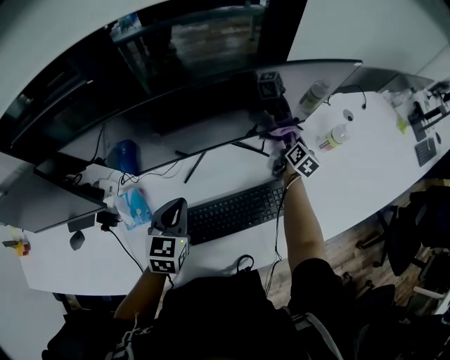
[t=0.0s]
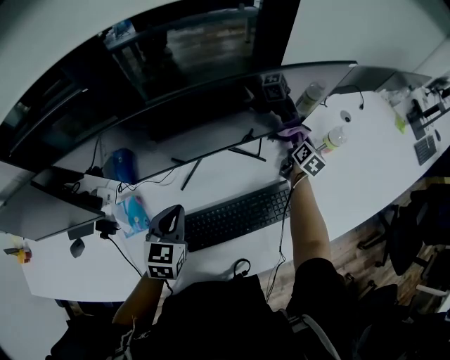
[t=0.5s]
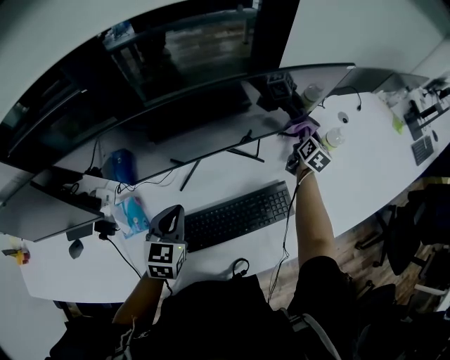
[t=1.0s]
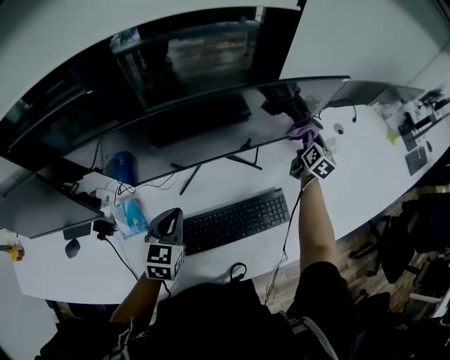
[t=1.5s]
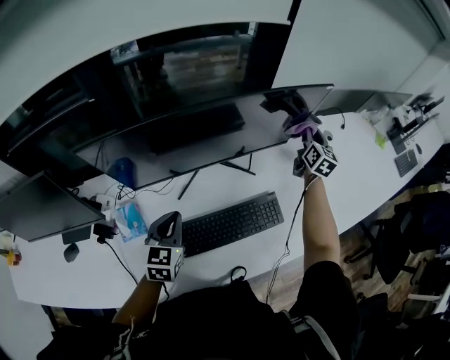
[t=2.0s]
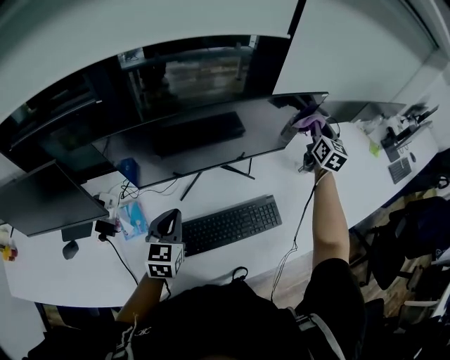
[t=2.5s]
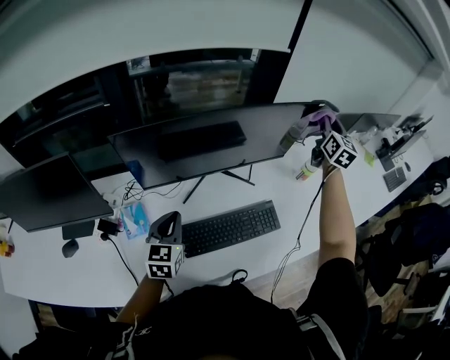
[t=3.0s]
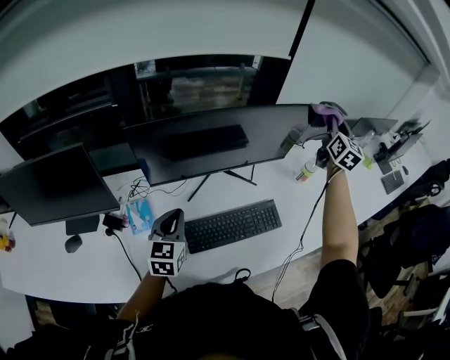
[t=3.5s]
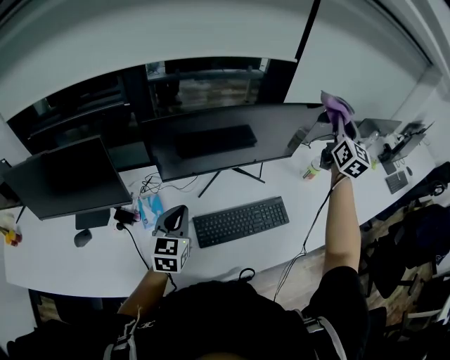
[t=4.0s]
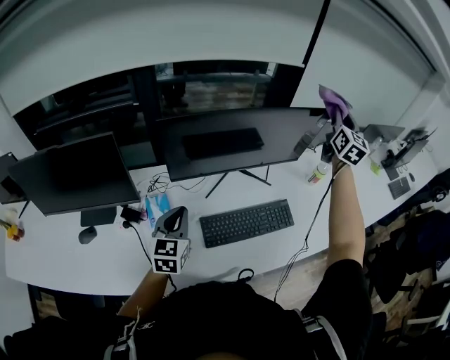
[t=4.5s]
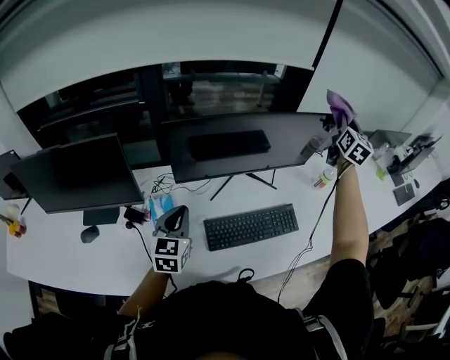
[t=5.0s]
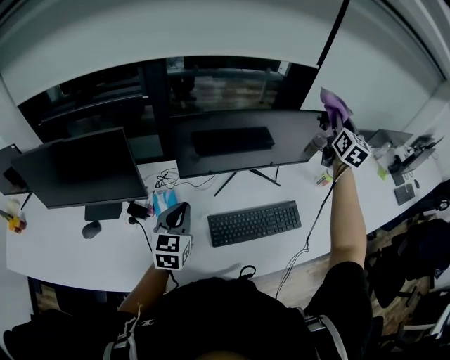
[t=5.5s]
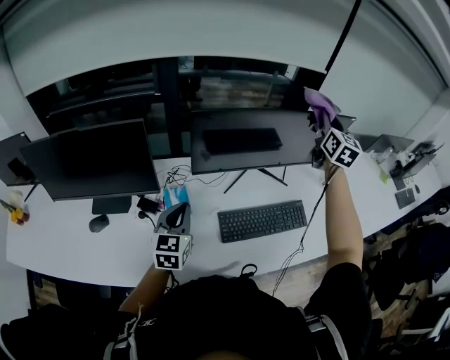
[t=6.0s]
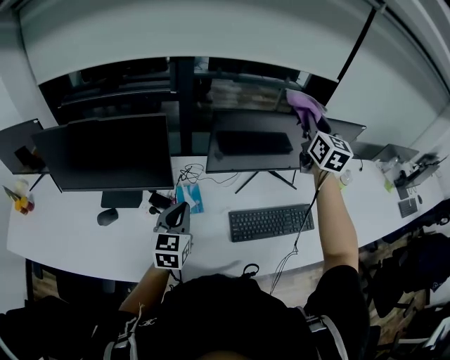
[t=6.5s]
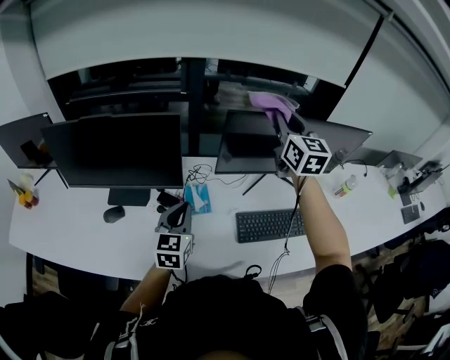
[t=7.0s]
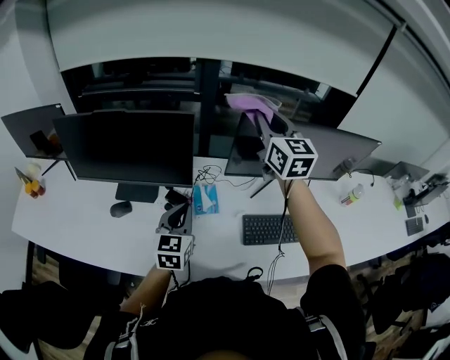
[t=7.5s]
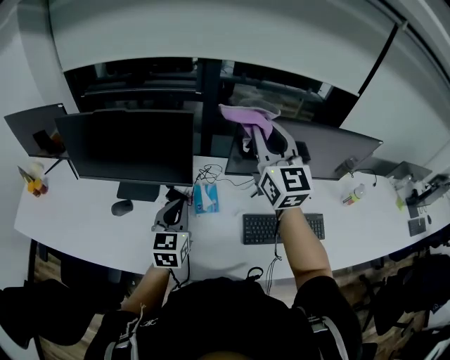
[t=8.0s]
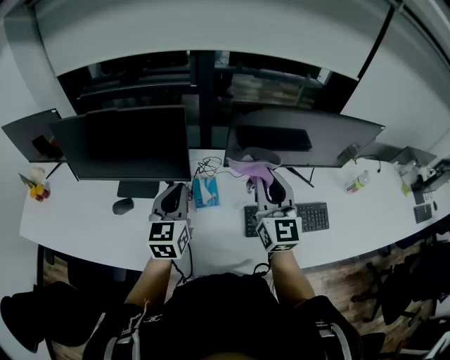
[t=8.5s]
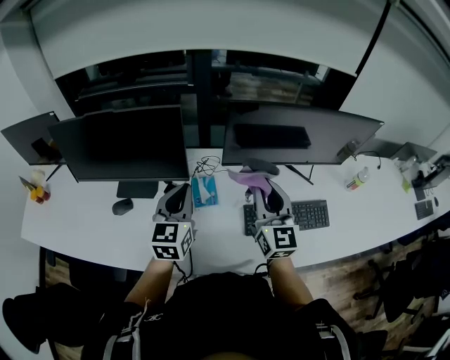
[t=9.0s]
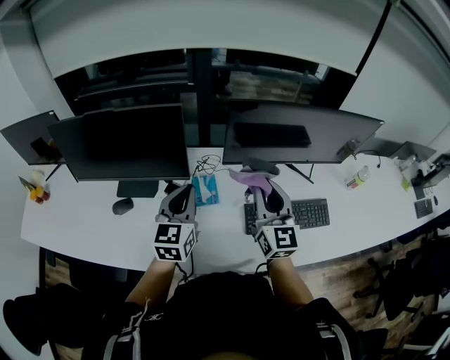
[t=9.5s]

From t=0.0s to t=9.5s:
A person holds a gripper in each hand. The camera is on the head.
From t=0.0s to t=2.0s: The right gripper is displaced upward by roughly 20 cm, and rotates roughly 20 degrees.
From t=2.0s to t=4.0s: The right gripper is displaced upward and backward by about 30 cm, and changes its angle by roughly 20 degrees, while the left gripper moves backward, upward and to the left, approximately 15 cm.
From t=4.0s to t=5.5s: The two grippers go approximately 5 cm to the left.
From t=5.5s to t=7.5s: The left gripper ends up about 15 cm from where it was. Meanwhile the right gripper ends up some 50 cm from where it was, and swivels roughly 40 degrees.
From t=7.5s to t=9.5s: The left gripper shifts some 5 cm upward. The right gripper shifts approximately 20 cm backward and downward.

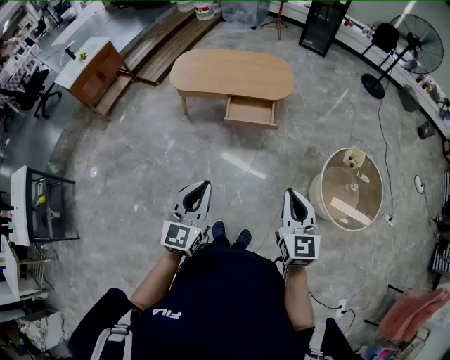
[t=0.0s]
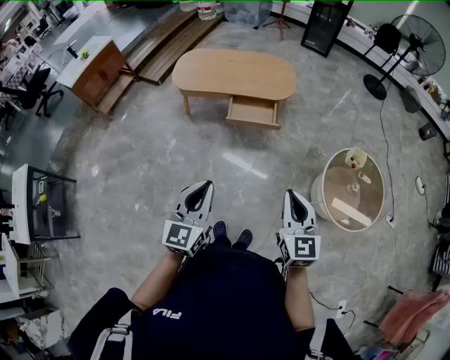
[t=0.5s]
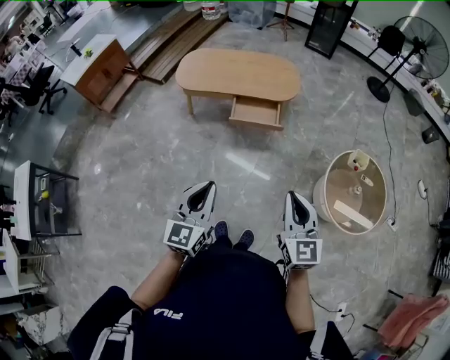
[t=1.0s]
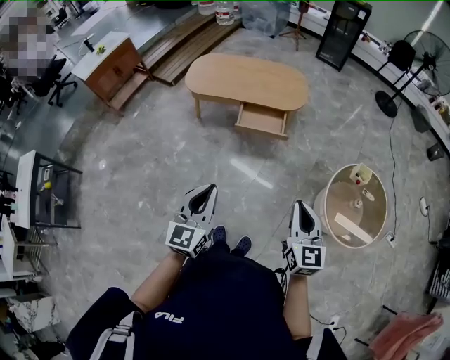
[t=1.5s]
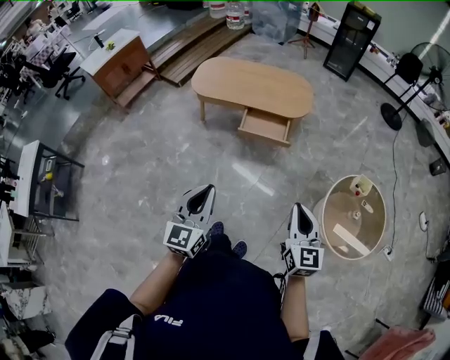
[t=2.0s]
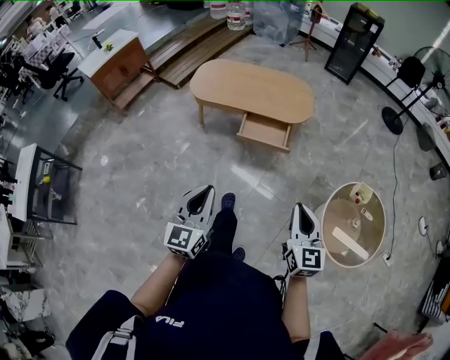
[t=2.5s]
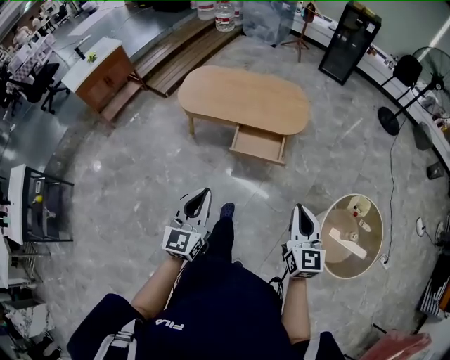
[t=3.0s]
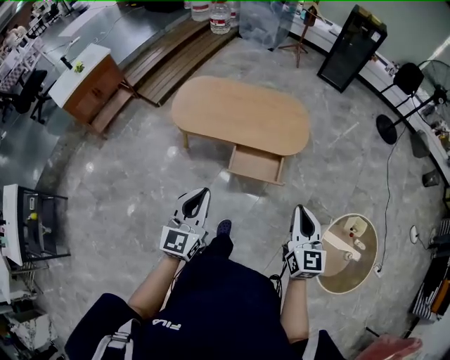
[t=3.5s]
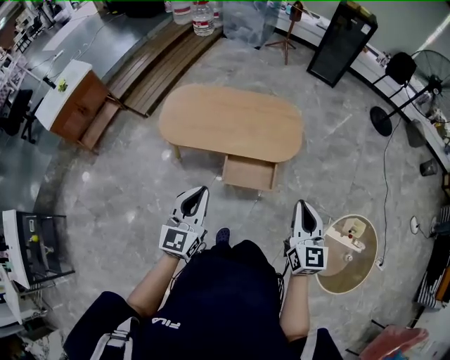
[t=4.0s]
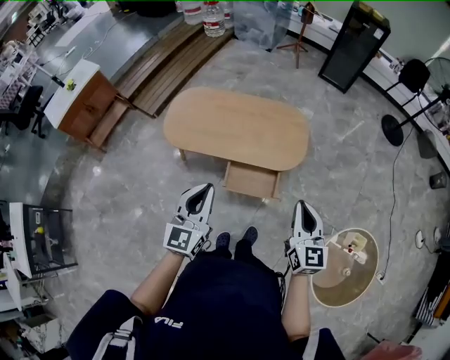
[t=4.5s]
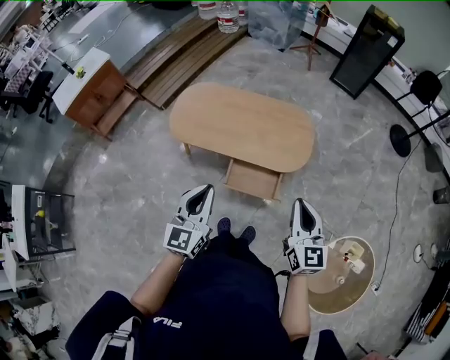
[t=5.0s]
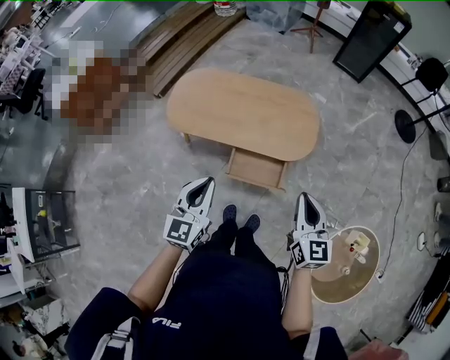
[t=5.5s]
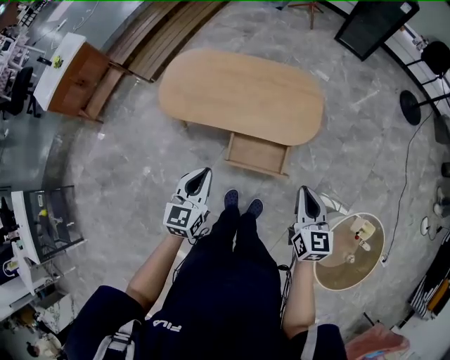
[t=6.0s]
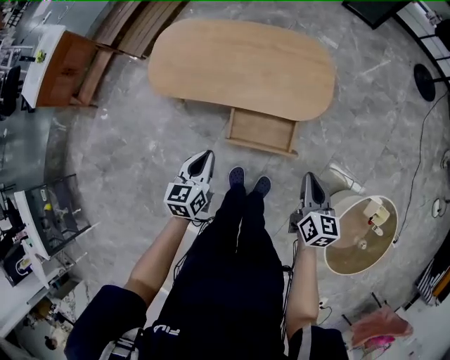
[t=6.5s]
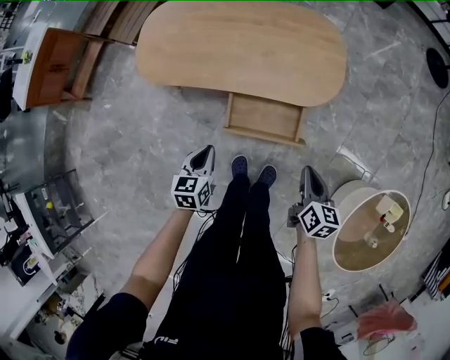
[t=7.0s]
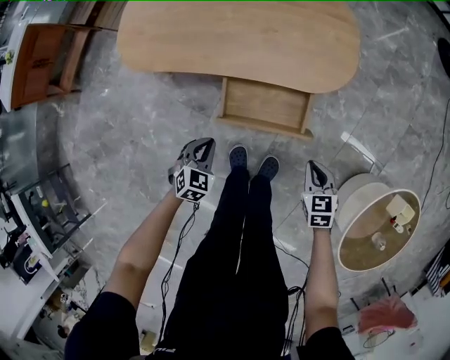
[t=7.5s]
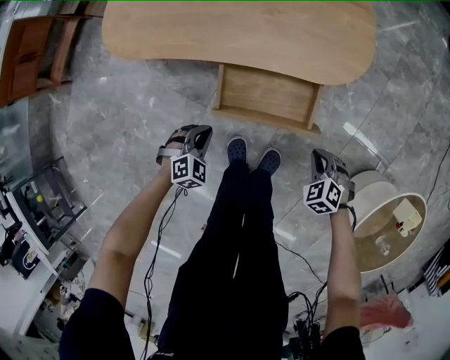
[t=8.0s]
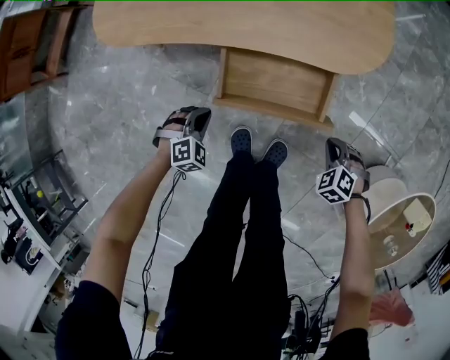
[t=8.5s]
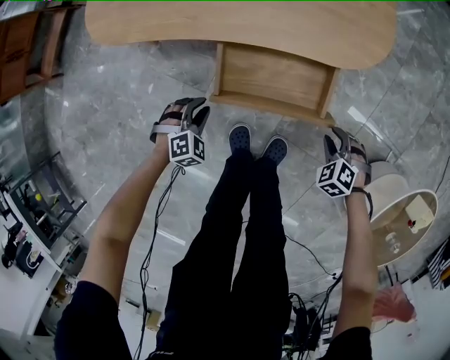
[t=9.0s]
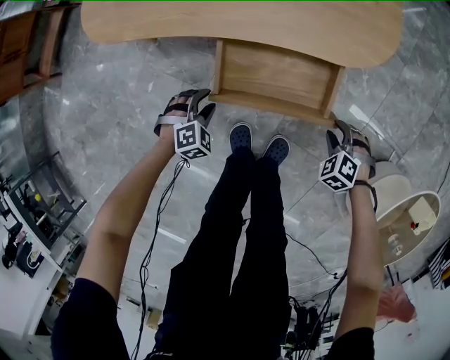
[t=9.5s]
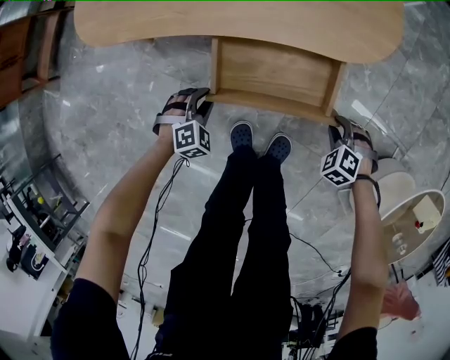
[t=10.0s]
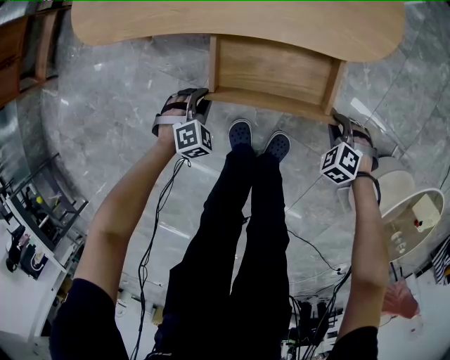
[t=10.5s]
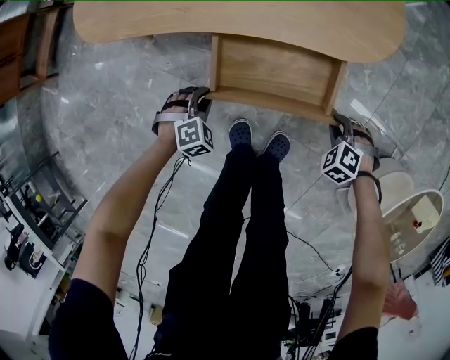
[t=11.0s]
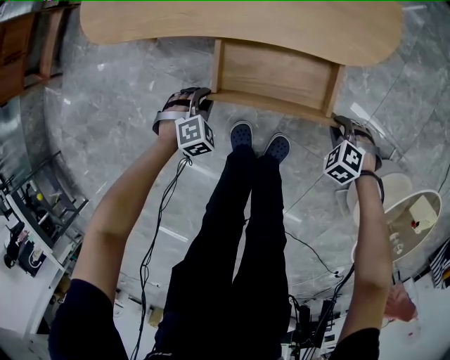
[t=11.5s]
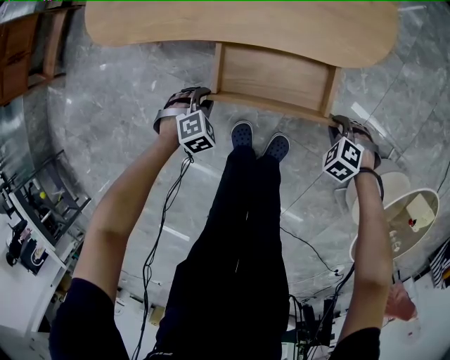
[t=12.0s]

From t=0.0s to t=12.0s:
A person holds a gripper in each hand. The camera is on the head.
From t=0.0s to t=2.0s: The right gripper changes place by roughly 5 cm.
From t=2.0s to t=4.0s: Both grippers are carried forward, roughly 50 cm.
From t=4.0s to t=6.0s: The grippers both shift downward and forward by roughly 20 cm.
From t=6.0s to t=8.0s: The two grippers go approximately 50 cm downward. The left gripper points its fingers roughly 40 degrees further downward; the right gripper angles its fingers downward, by roughly 50 degrees.
From t=8.0s to t=10.0s: The two grippers go approximately 10 cm downward. The left gripper opens up, while the right gripper opens its fingers.
From t=10.0s to t=12.0s: The grippers make only small movements.

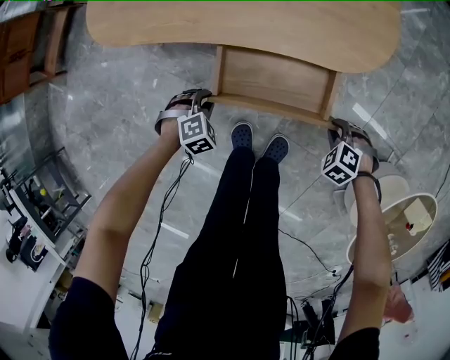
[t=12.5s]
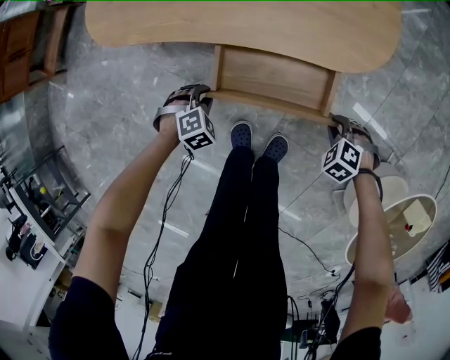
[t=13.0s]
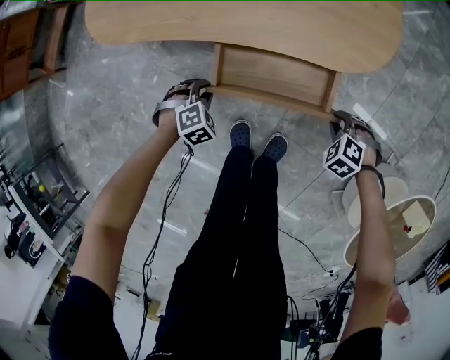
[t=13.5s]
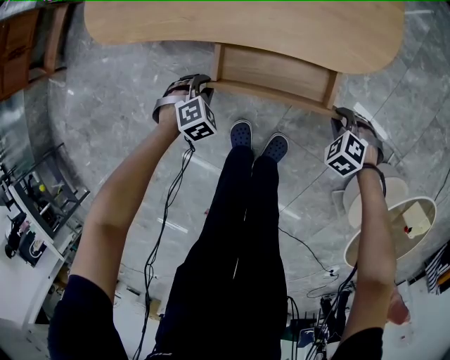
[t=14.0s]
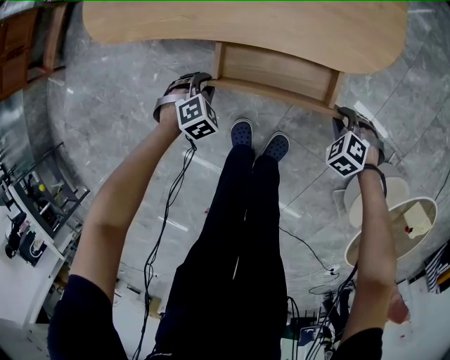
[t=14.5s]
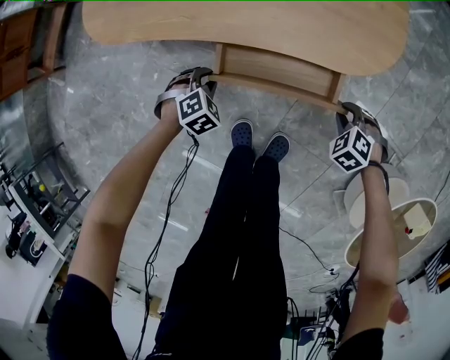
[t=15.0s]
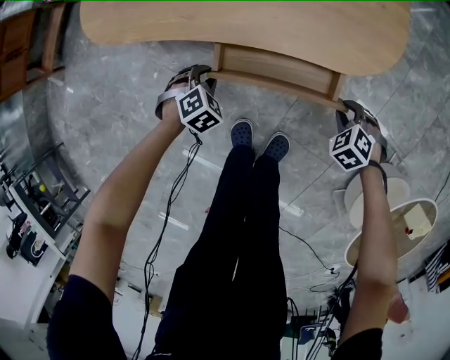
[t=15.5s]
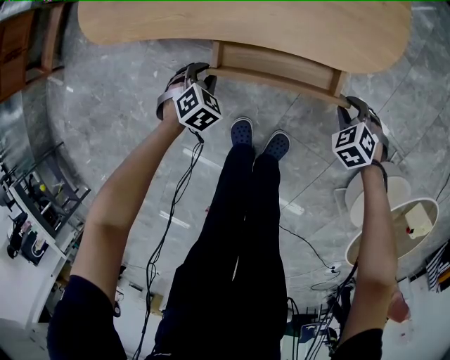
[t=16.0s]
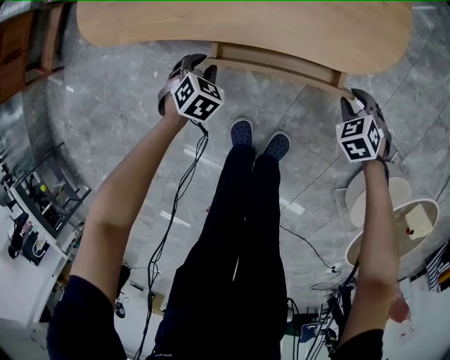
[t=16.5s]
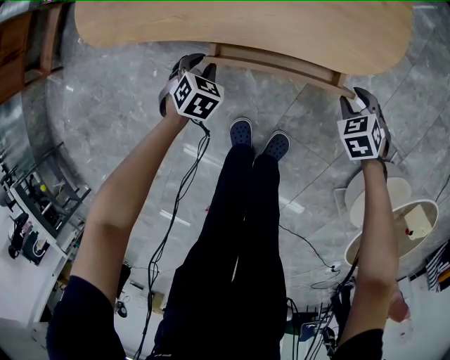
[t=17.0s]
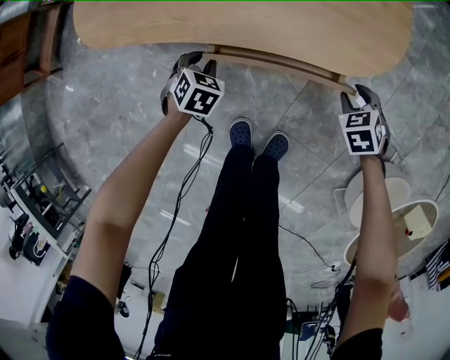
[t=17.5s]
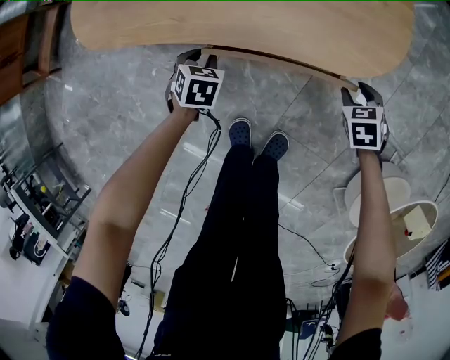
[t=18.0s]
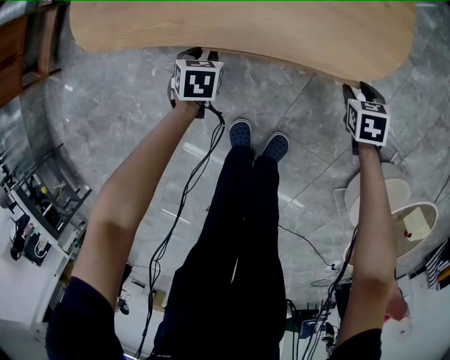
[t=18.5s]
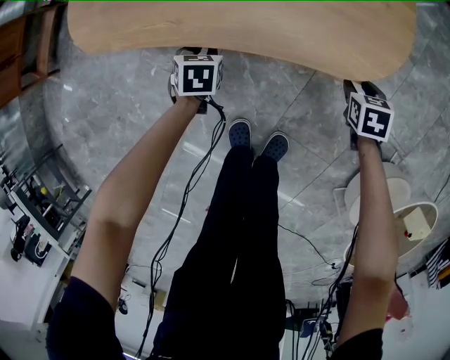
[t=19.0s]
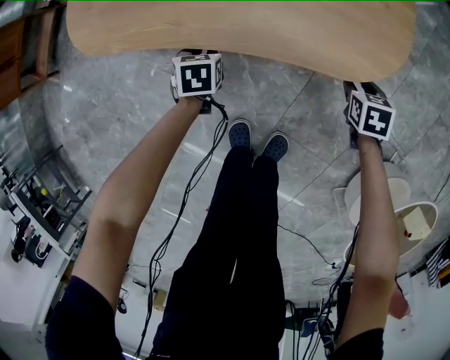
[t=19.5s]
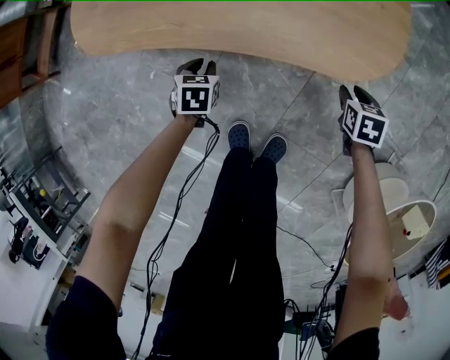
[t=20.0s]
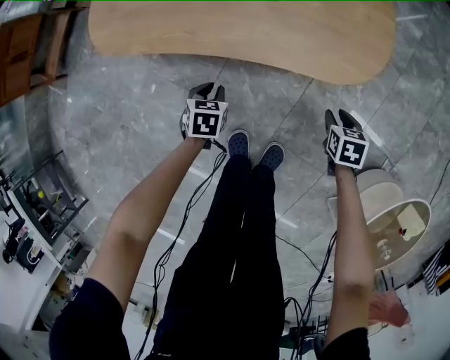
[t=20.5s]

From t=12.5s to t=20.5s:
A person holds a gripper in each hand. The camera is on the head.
From t=12.5s to t=14.5s: The grippers stay close to where they were, moving slightly.
From t=14.5s to t=16.5s: The right gripper moves some 10 cm, and swivels roughly 20 degrees, while the left gripper shifts by roughly 5 cm, and turns by approximately 20 degrees.
From t=16.5s to t=18.5s: The left gripper swivels some 30 degrees, while the right gripper changes place by some 5 cm, and changes its angle by some 40 degrees.
From t=18.5s to t=20.5s: The grippers both shift backward by some 5 cm.
